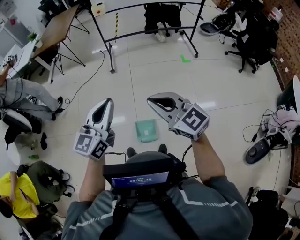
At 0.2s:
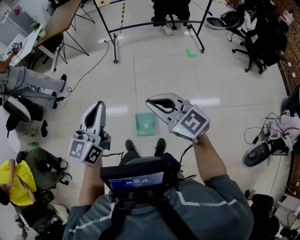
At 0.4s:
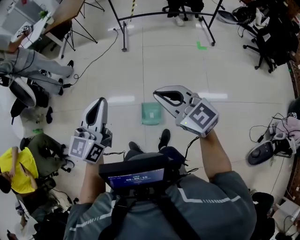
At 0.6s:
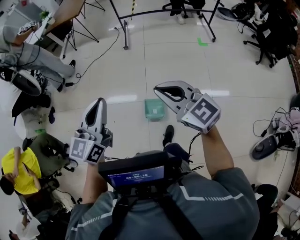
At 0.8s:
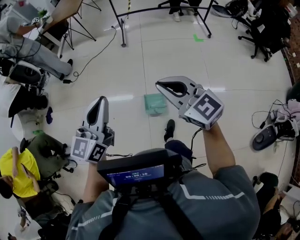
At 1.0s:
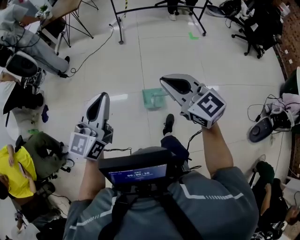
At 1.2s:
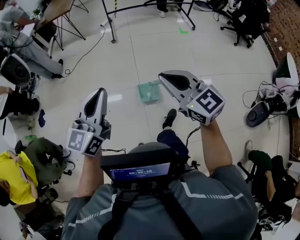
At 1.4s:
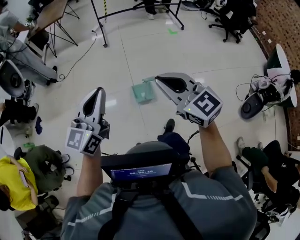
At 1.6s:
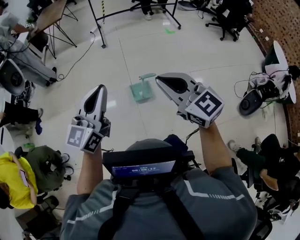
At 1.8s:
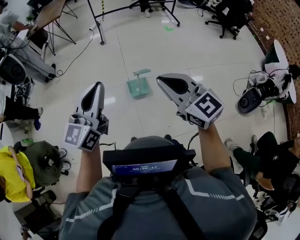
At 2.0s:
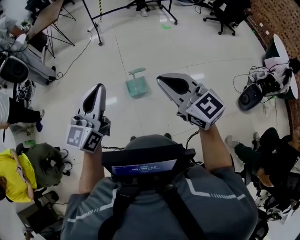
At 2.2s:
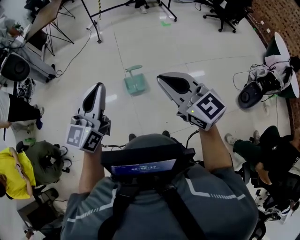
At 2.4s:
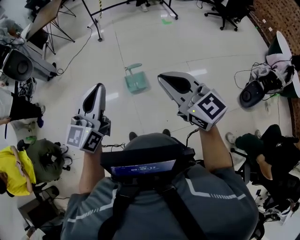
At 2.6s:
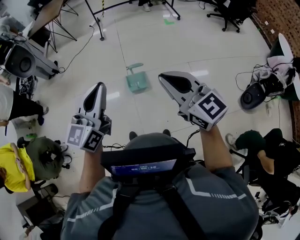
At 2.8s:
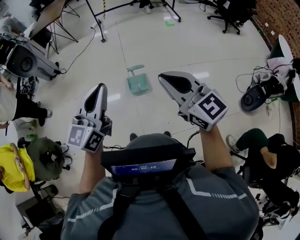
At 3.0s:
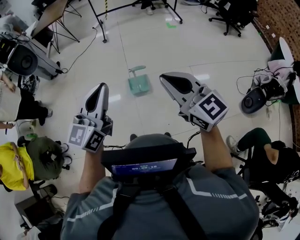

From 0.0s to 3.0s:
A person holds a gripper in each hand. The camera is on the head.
From 0.0s to 1.6s: The pair of grippers is taken backward and to the left, roughly 60 cm.
From 1.6s to 3.0s: The grippers both shift to the right and backward by some 15 cm.

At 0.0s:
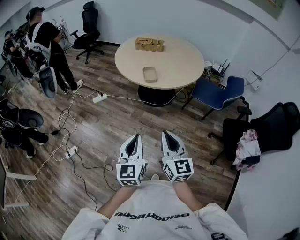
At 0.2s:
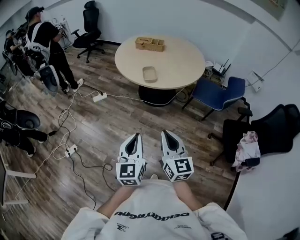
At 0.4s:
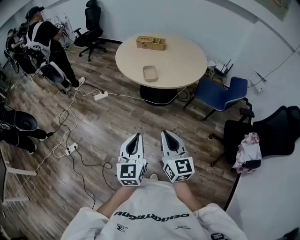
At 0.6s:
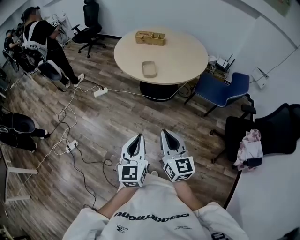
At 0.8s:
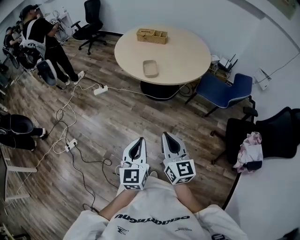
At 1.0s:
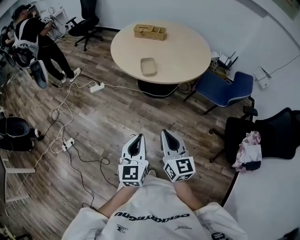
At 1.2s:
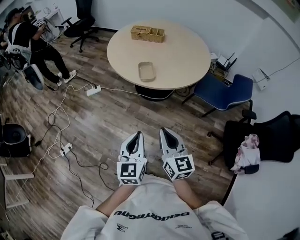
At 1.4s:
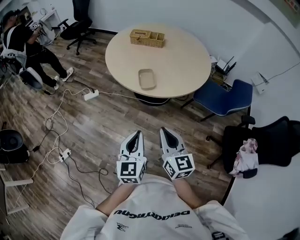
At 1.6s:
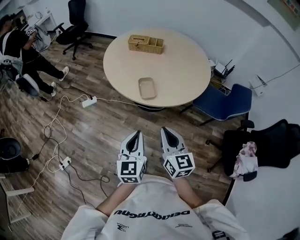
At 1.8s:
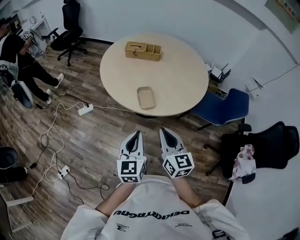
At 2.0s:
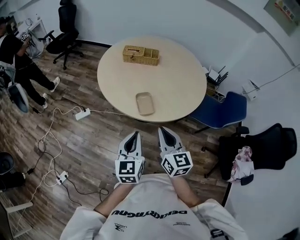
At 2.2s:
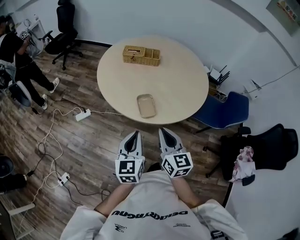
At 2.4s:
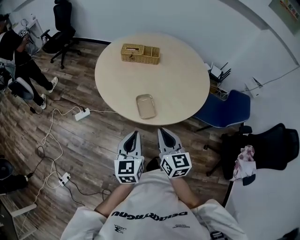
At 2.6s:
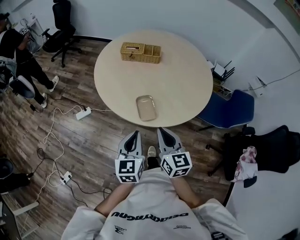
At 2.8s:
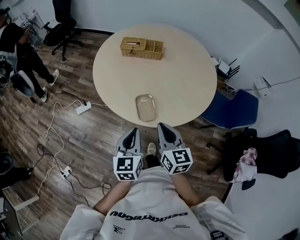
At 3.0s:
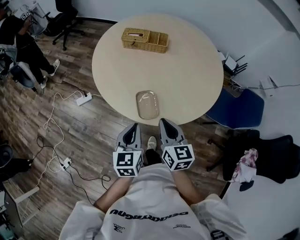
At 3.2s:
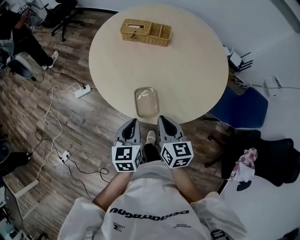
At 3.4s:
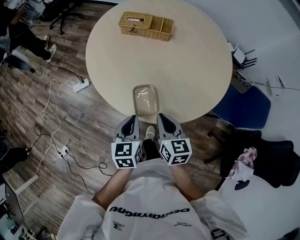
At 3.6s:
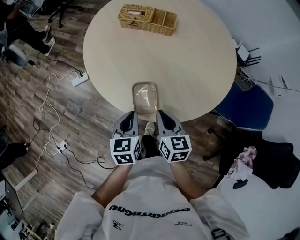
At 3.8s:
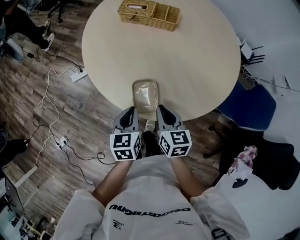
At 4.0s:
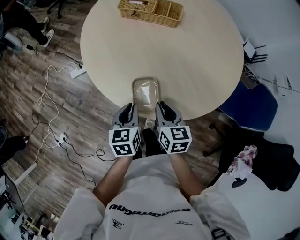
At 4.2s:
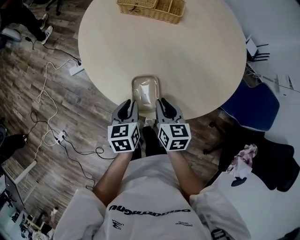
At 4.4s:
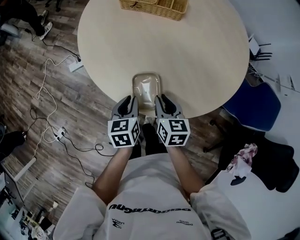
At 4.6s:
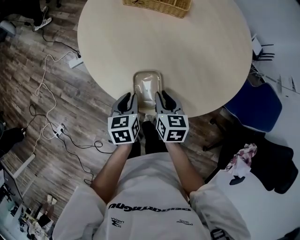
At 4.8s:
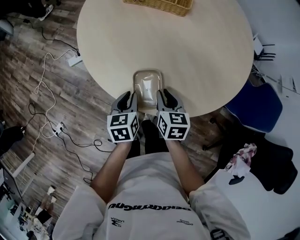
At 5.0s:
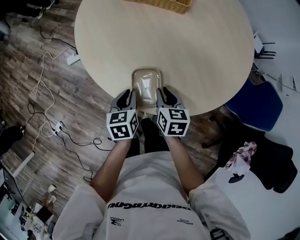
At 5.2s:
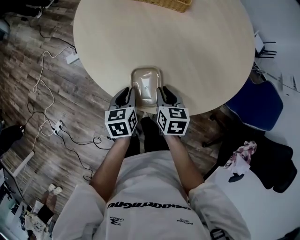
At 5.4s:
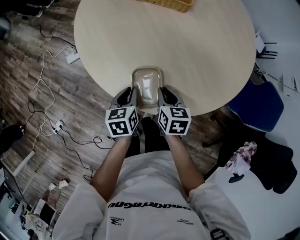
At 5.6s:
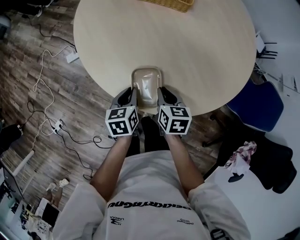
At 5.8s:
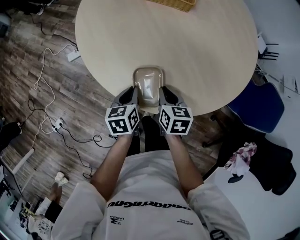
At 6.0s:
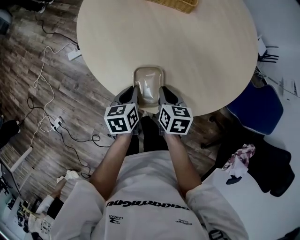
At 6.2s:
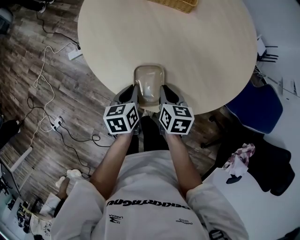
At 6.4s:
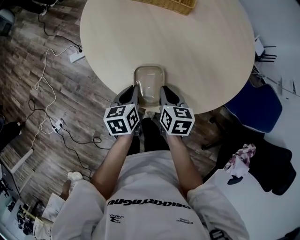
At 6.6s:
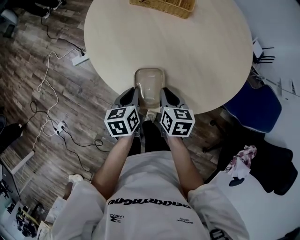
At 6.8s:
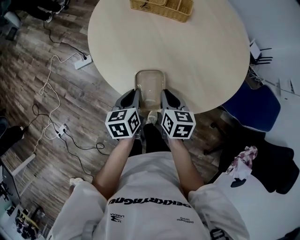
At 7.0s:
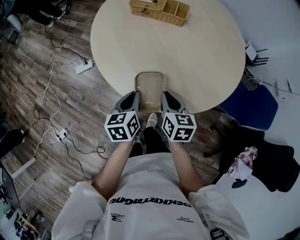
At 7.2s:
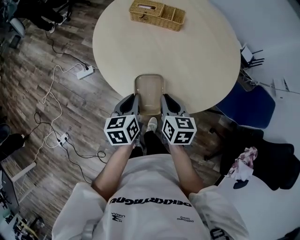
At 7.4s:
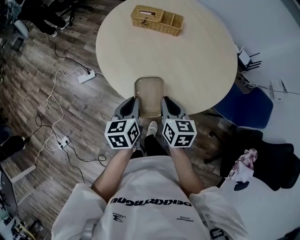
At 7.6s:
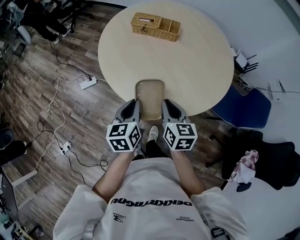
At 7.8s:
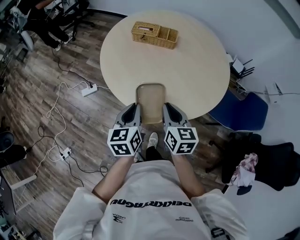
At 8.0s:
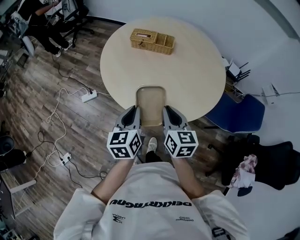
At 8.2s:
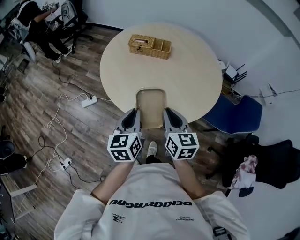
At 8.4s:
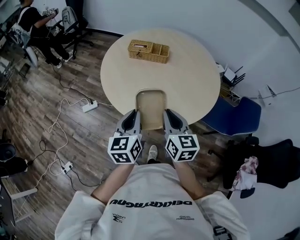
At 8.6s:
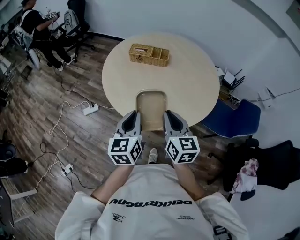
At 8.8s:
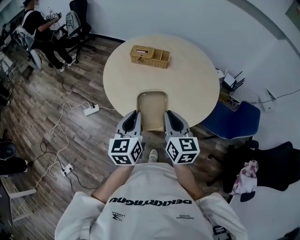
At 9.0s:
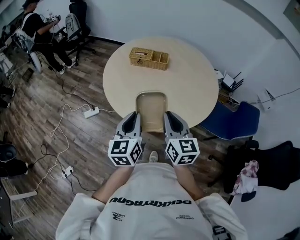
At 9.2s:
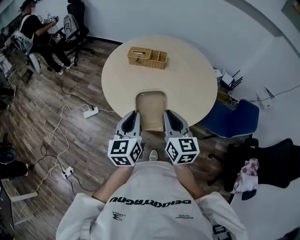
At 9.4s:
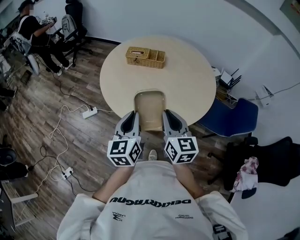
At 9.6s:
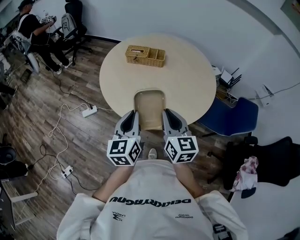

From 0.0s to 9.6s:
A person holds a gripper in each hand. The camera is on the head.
From 0.0s to 1.6s: Both grippers move forward, some 30 cm.
From 1.6s to 3.2s: The two grippers go about 30 cm forward. The left gripper rotates about 20 degrees.
From 3.2s to 4.8s: Both grippers move downward and forward, roughly 20 cm.
From 4.8s to 6.4s: There are only small adjustments of the grippers.
From 6.4s to 8.0s: The left gripper is displaced upward by about 25 cm, and swivels roughly 30 degrees. Meanwhile the right gripper is displaced upward and backward by roughly 25 cm, and rotates some 30 degrees.
From 8.0s to 9.6s: The two grippers go about 10 cm upward.

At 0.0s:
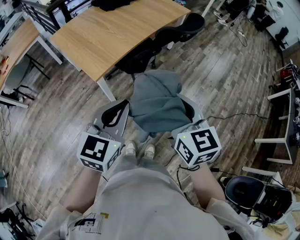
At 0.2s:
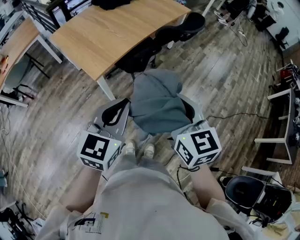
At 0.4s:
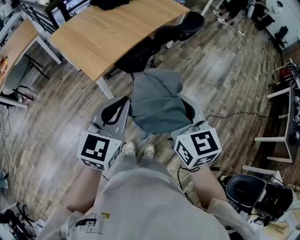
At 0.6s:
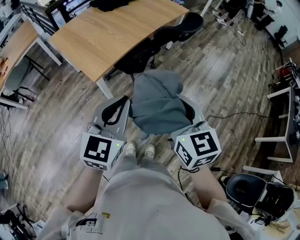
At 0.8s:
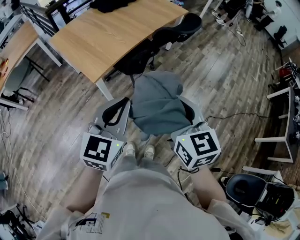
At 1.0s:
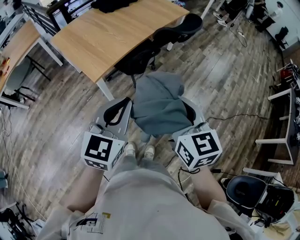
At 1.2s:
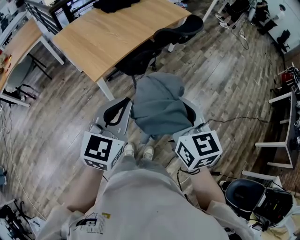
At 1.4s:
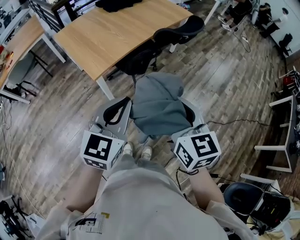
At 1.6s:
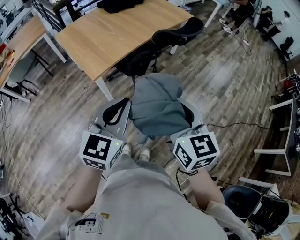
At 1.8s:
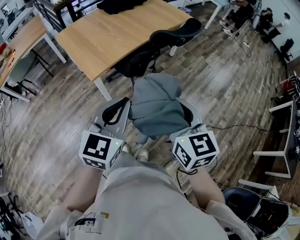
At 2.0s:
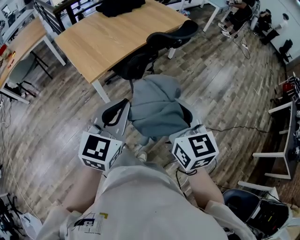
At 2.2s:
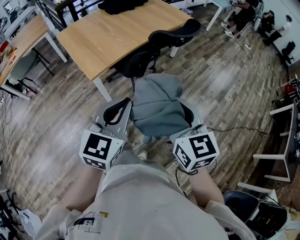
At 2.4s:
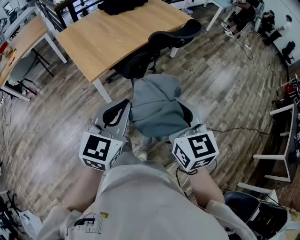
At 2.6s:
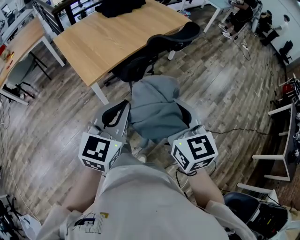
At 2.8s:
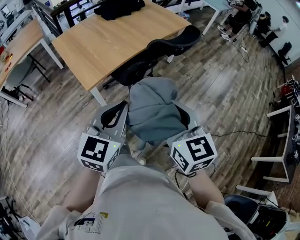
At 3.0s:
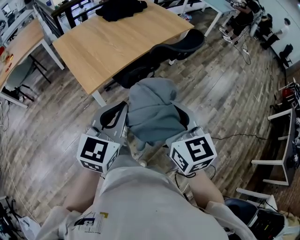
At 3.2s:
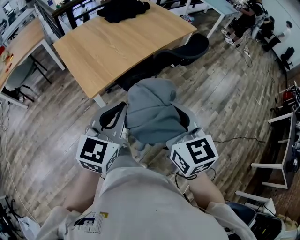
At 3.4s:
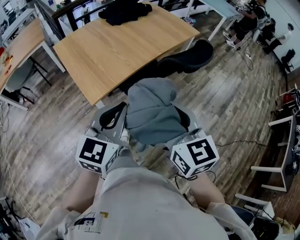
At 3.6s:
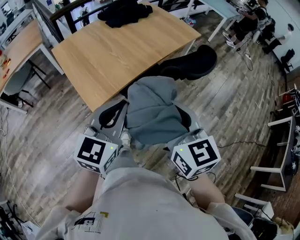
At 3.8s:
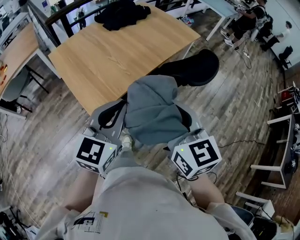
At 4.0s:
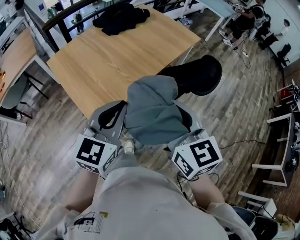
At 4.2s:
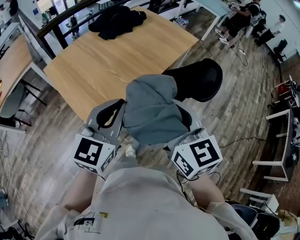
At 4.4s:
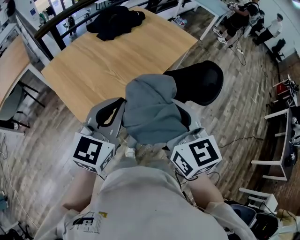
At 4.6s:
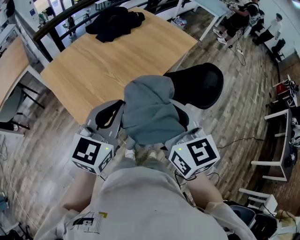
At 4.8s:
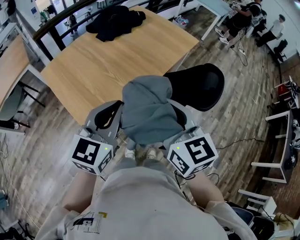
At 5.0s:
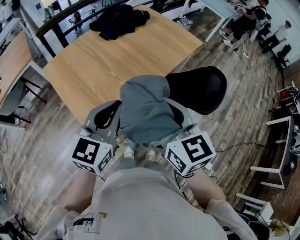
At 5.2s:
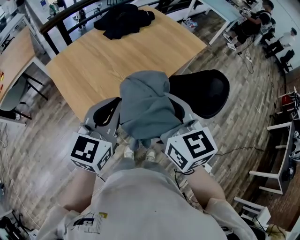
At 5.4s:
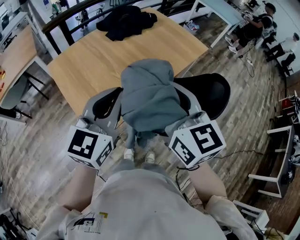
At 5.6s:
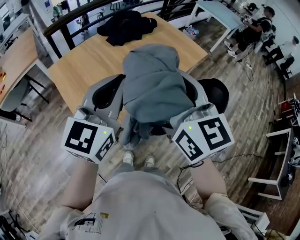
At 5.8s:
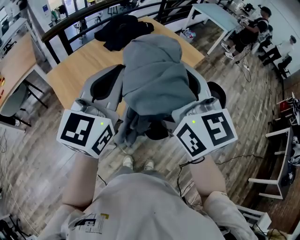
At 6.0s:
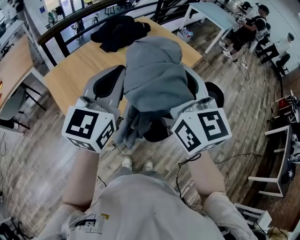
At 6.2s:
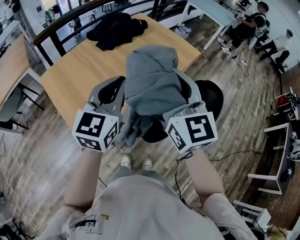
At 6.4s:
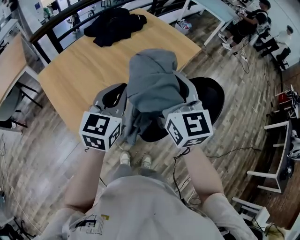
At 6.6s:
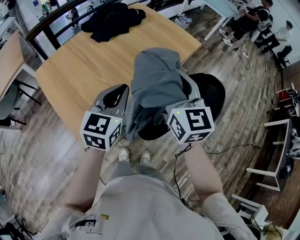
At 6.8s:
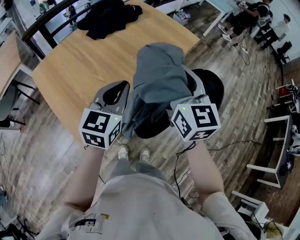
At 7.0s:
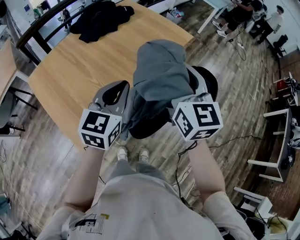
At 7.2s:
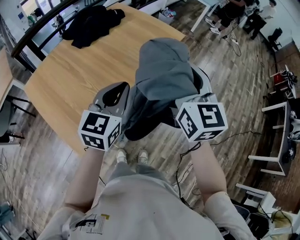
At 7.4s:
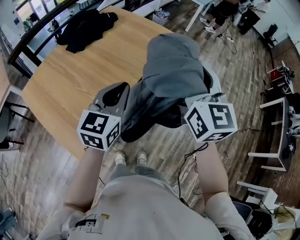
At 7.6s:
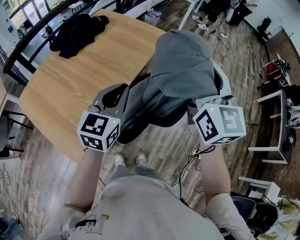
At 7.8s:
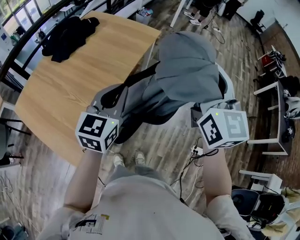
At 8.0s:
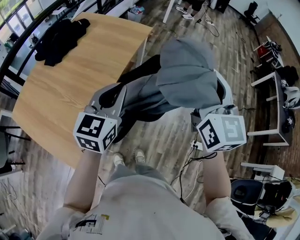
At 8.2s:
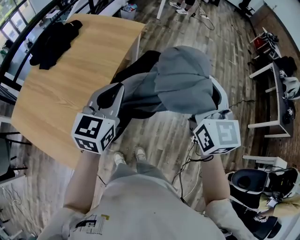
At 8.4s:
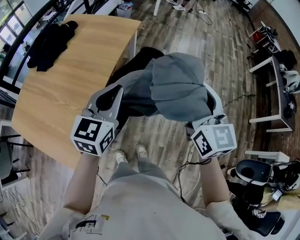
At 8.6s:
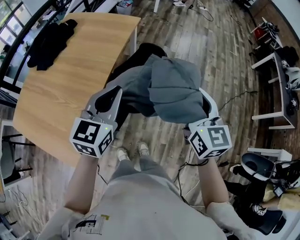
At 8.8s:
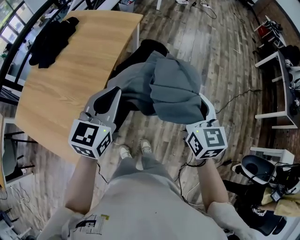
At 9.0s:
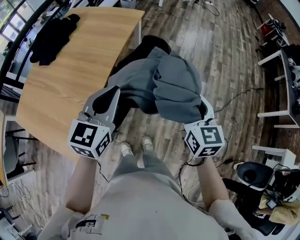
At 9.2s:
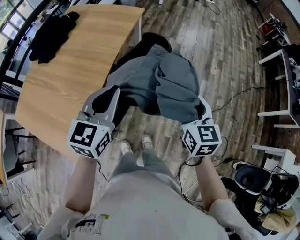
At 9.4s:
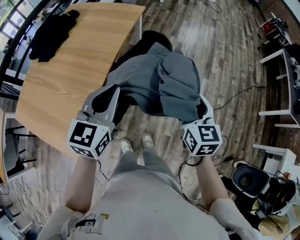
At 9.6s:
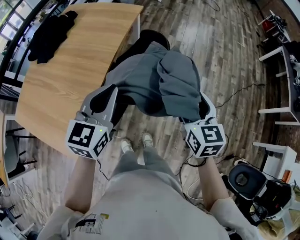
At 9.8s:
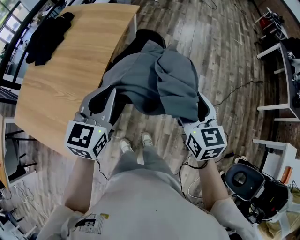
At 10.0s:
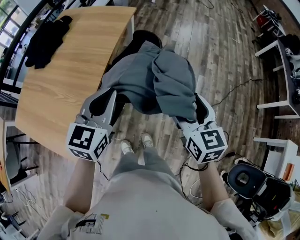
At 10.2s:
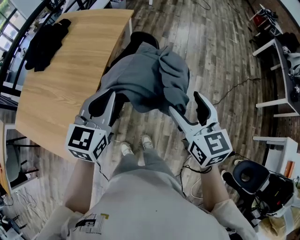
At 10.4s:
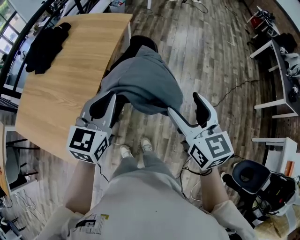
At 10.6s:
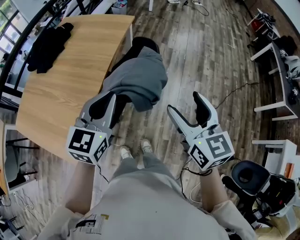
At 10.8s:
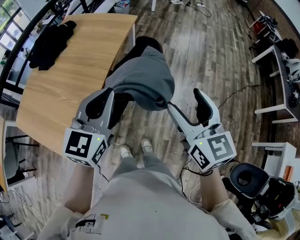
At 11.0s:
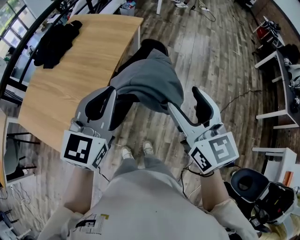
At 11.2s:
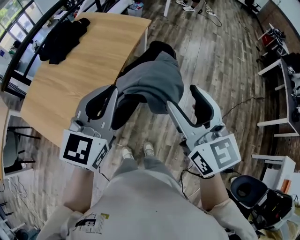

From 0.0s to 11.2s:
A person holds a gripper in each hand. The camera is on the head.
From 0.0s to 1.6s: There are only small adjustments of the grippers.
From 1.6s to 3.2s: Both grippers travel together forward, some 10 cm.
From 3.2s to 4.8s: The right gripper moves forward and to the left, some 30 cm. The left gripper heads forward, covering about 30 cm.
From 4.8s to 6.4s: The two grippers go some 15 cm forward. The left gripper moves roughly 15 cm upward and comes back.
From 6.4s to 8.0s: The grippers both shift to the right by about 30 cm. The left gripper swivels about 20 degrees. The right gripper rotates roughly 30 degrees.
From 8.0s to 9.6s: The left gripper heads to the right, covering roughly 5 cm; the right gripper is displaced downward and to the right by approximately 25 cm, swivels some 30 degrees, and opens up.
From 9.6s to 11.2s: The left gripper moves upward and backward, approximately 15 cm, while the right gripper moves upward and to the left, roughly 20 cm, and turns by about 20 degrees.
